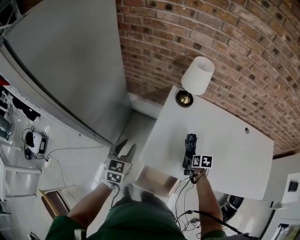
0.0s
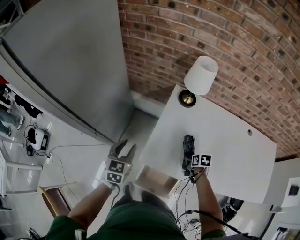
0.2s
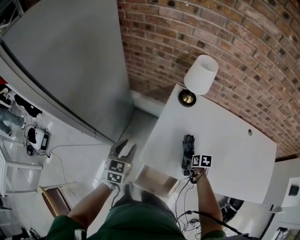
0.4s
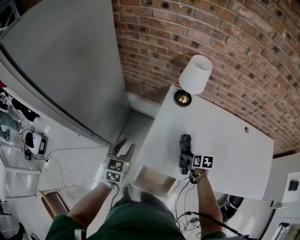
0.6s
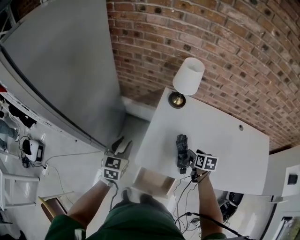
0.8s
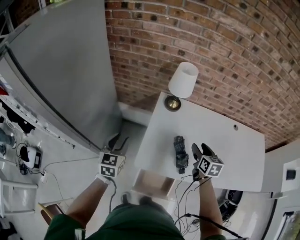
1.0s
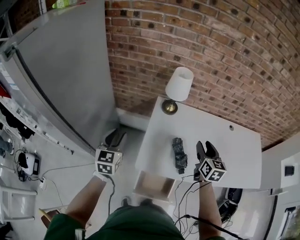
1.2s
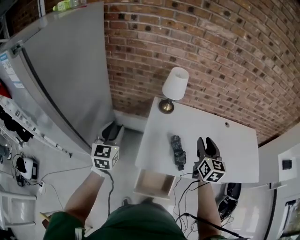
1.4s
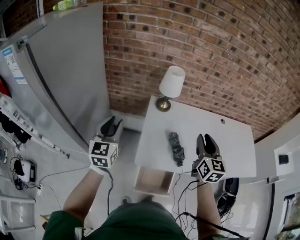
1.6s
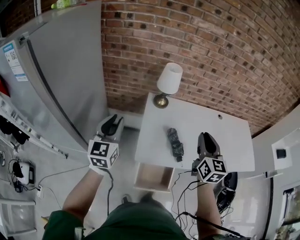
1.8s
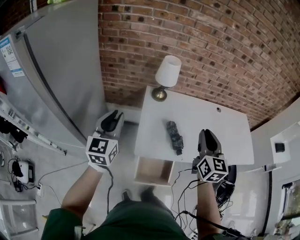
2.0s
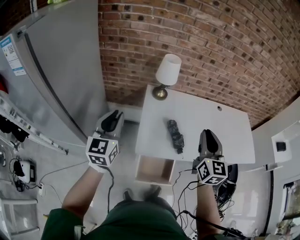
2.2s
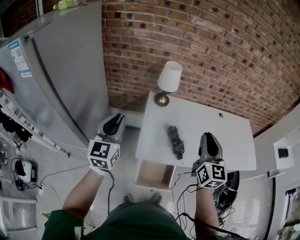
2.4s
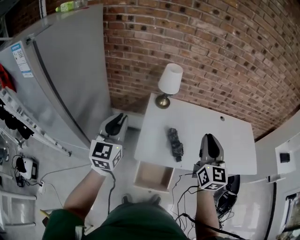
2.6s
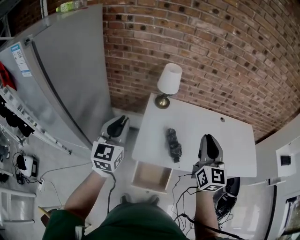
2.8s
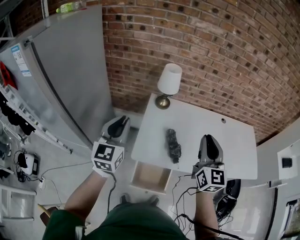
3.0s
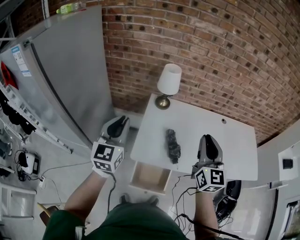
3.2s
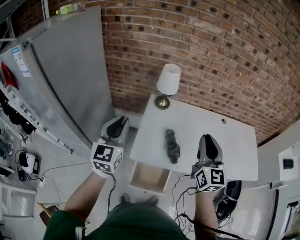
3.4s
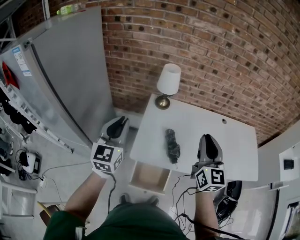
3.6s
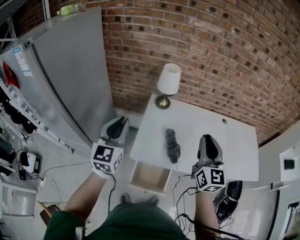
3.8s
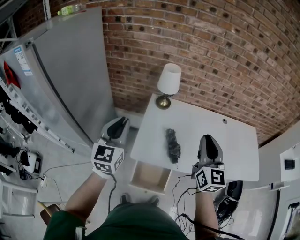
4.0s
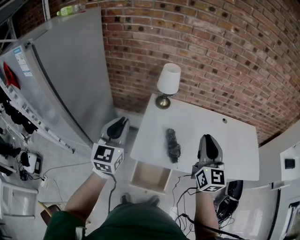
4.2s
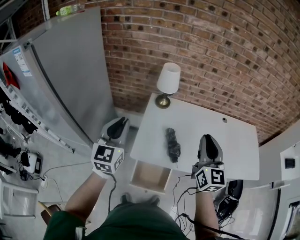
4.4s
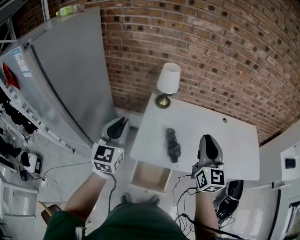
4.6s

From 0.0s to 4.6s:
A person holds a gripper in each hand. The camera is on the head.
From 0.0s to 1.6s: The right gripper heads upward, covering approximately 35 cm, and tilts its fingers approximately 50 degrees upward, while the left gripper moves upward, approximately 20 cm, and turns by some 20 degrees.
From 1.6s to 3.0s: The right gripper is displaced upward and backward by about 10 cm; the left gripper goes roughly 10 cm to the right and upward.
From 3.0s to 4.6s: The grippers stay close to where they were, moving slightly.

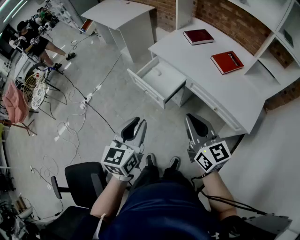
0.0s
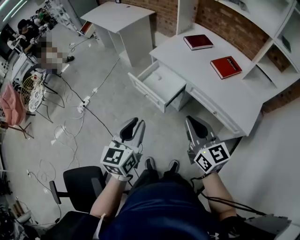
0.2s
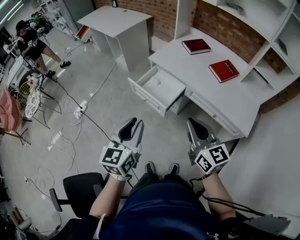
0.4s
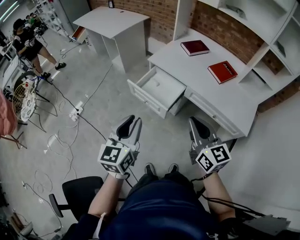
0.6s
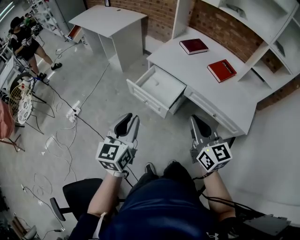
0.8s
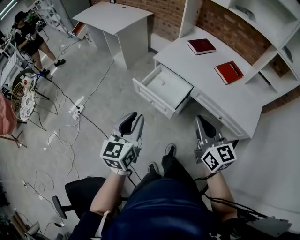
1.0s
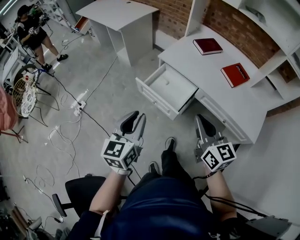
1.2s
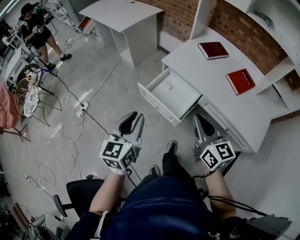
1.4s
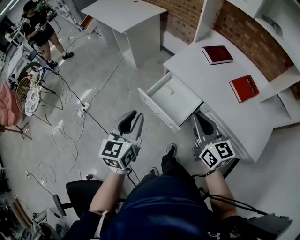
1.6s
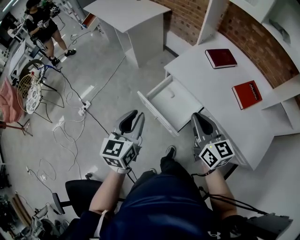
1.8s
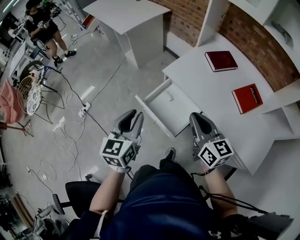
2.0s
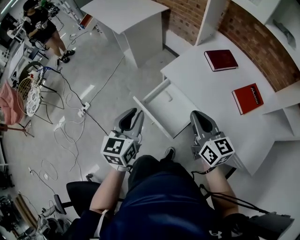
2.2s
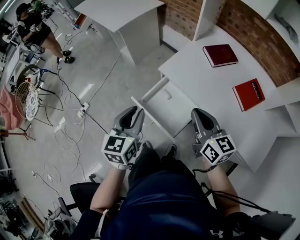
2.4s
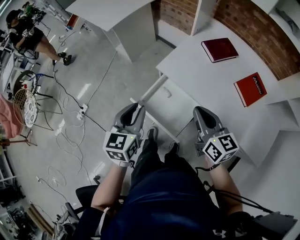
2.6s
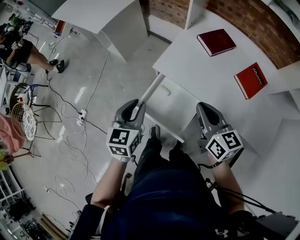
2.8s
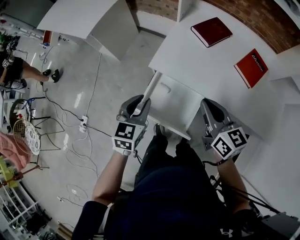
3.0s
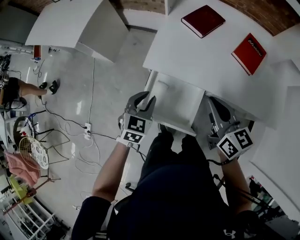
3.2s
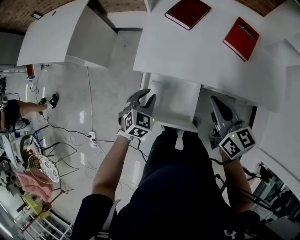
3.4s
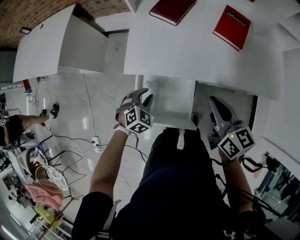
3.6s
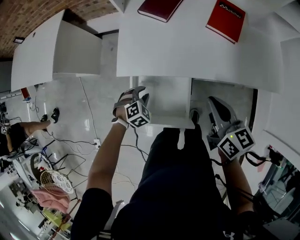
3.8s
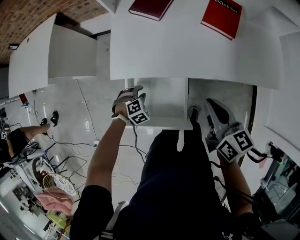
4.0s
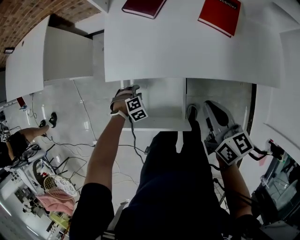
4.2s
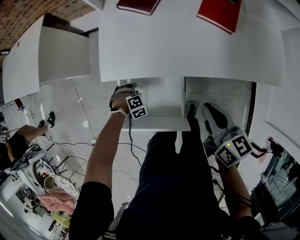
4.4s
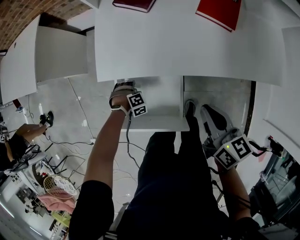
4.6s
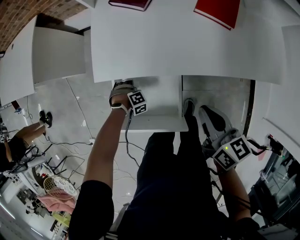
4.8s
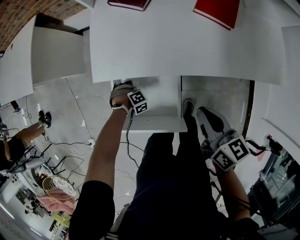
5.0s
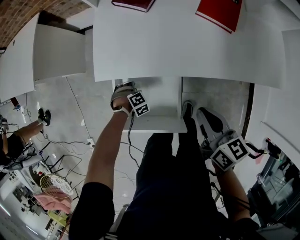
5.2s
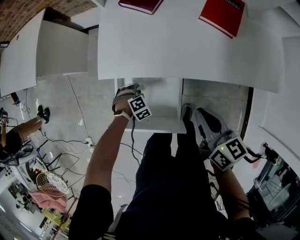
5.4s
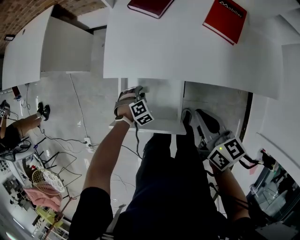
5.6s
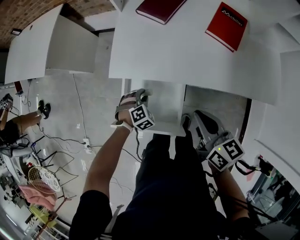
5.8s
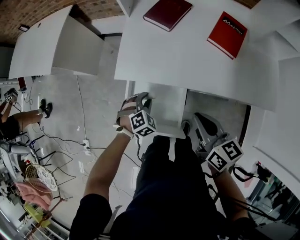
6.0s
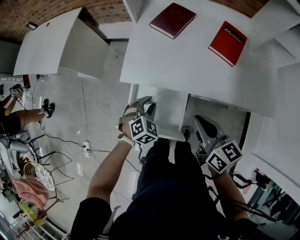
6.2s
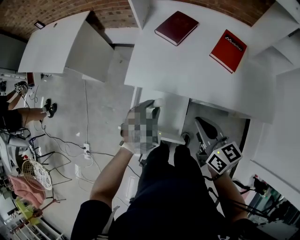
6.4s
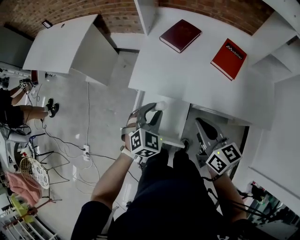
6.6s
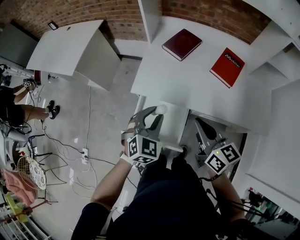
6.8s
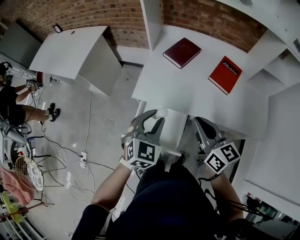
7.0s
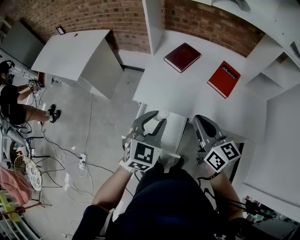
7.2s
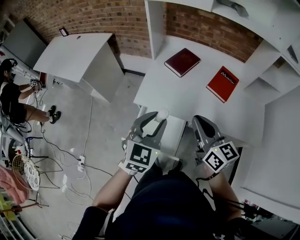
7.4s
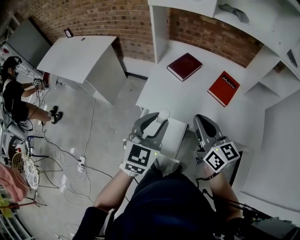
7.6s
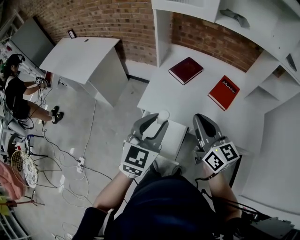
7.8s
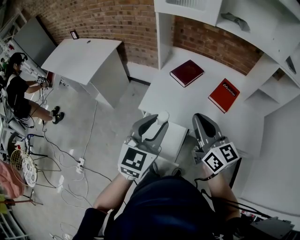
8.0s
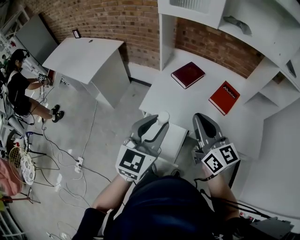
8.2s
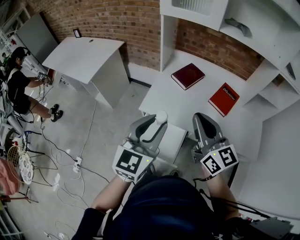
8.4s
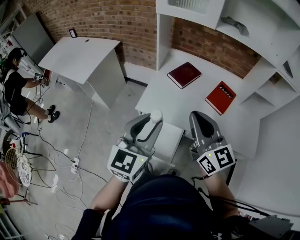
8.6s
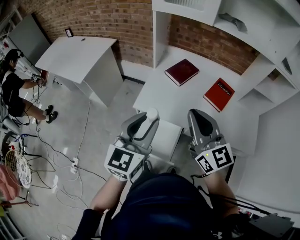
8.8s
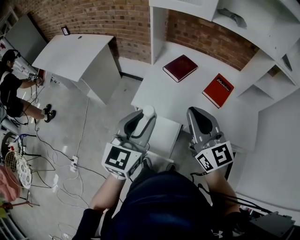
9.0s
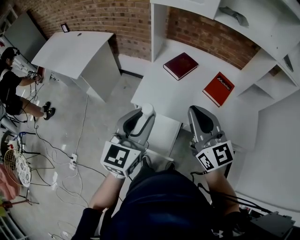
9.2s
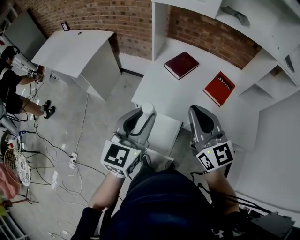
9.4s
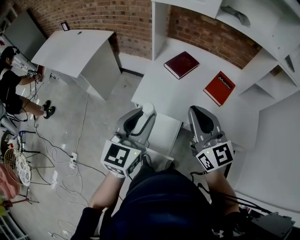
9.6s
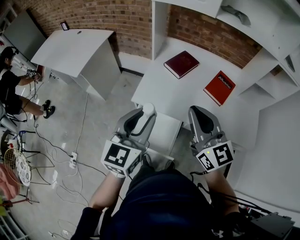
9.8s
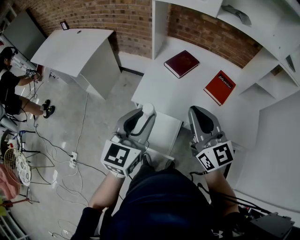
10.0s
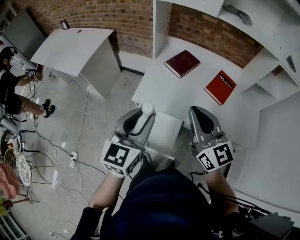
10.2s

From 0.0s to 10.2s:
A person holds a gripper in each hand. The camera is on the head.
From 0.0s to 1.4s: The grippers both shift forward and to the left by about 20 cm.
From 1.4s to 3.0s: The left gripper heads forward and downward, covering roughly 30 cm, and swivels some 30 degrees, while the right gripper shifts roughly 25 cm forward.
From 3.0s to 4.4s: The left gripper goes some 40 cm downward, and twists approximately 80 degrees clockwise, seen from behind. The right gripper ends up roughly 20 cm from where it was, and changes its angle by roughly 30 degrees.
From 4.4s to 5.8s: The left gripper moves upward, about 10 cm, and swivels about 30 degrees.
From 5.8s to 7.2s: The right gripper is displaced upward by approximately 15 cm, and rotates approximately 20 degrees. Meanwhile the left gripper moves upward, approximately 35 cm, and angles its fingers upward, by some 40 degrees.
From 7.2s to 8.8s: Both grippers move upward, roughly 10 cm. The right gripper swivels approximately 20 degrees; the left gripper changes its angle by some 20 degrees.
From 8.8s to 10.2s: The grippers move only a little.

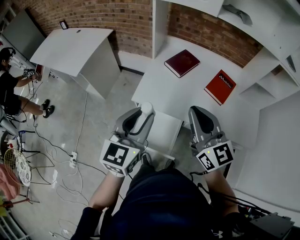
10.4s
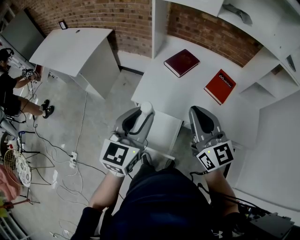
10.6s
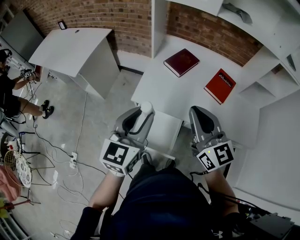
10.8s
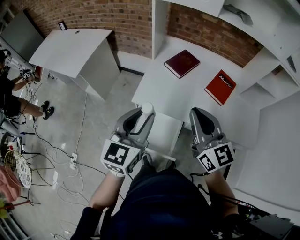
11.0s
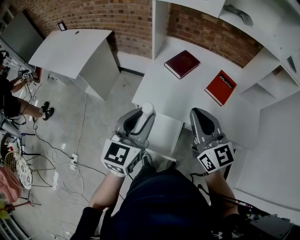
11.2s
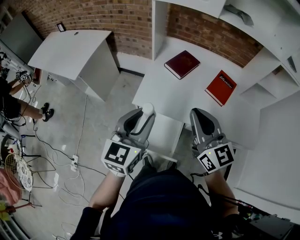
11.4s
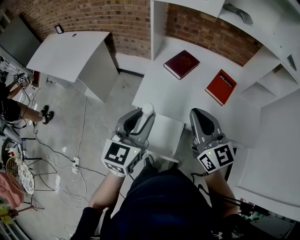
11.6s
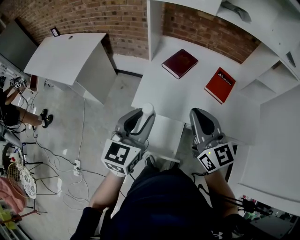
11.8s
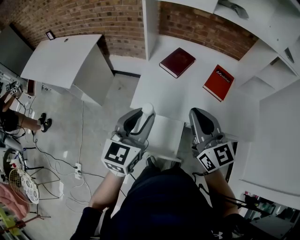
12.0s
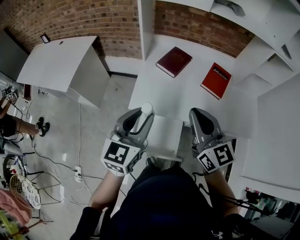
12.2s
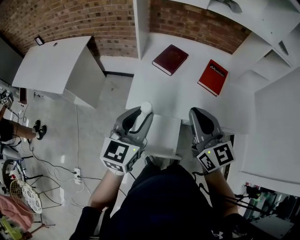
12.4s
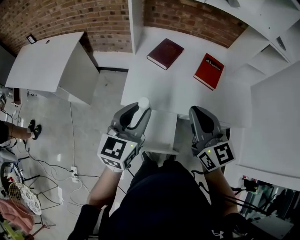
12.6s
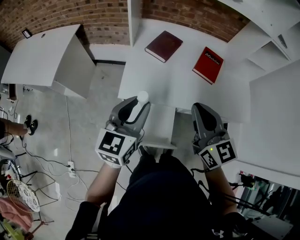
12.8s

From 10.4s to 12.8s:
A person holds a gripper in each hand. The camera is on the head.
From 10.4s to 11.6s: The grippers move only a little.
From 11.6s to 12.8s: The left gripper ends up roughly 5 cm from where it was.

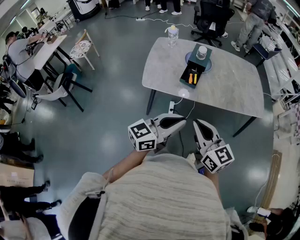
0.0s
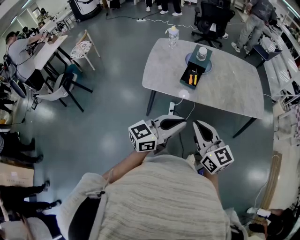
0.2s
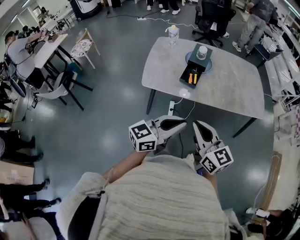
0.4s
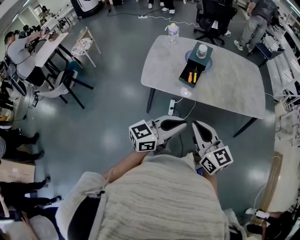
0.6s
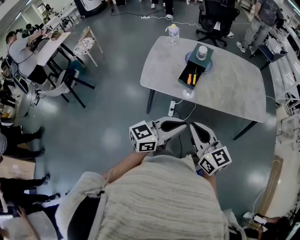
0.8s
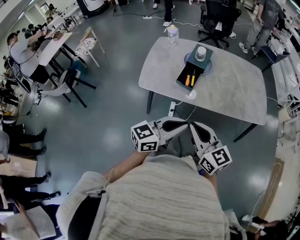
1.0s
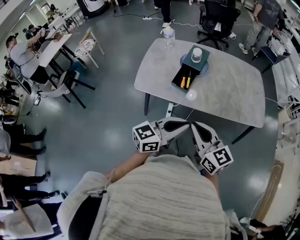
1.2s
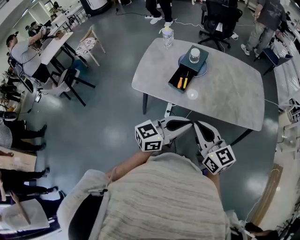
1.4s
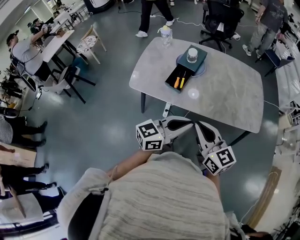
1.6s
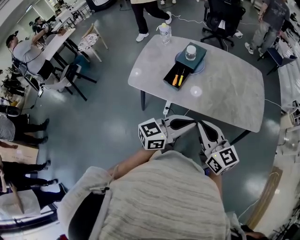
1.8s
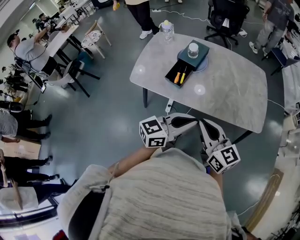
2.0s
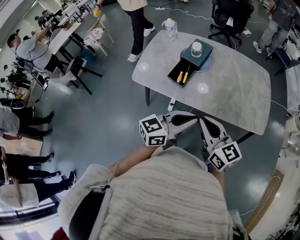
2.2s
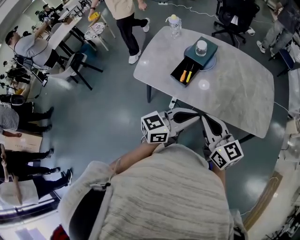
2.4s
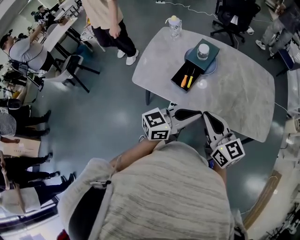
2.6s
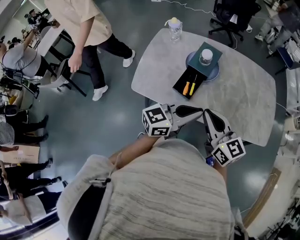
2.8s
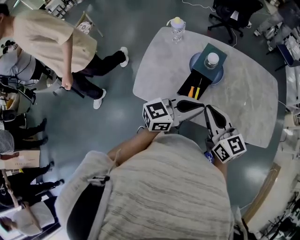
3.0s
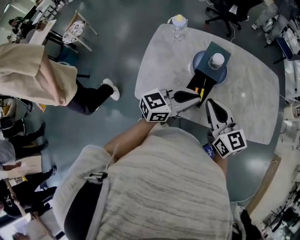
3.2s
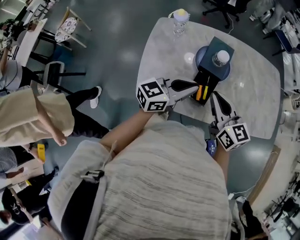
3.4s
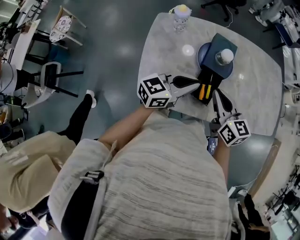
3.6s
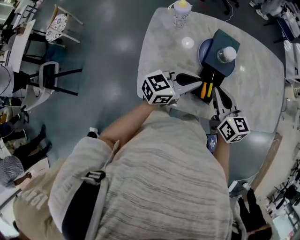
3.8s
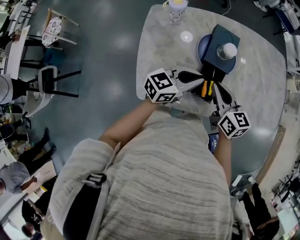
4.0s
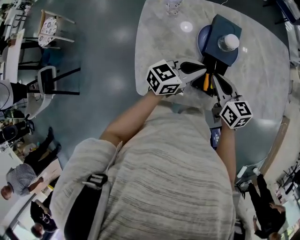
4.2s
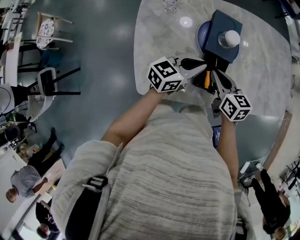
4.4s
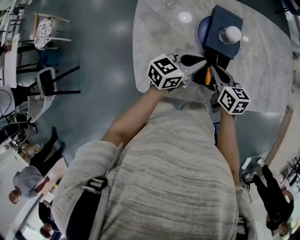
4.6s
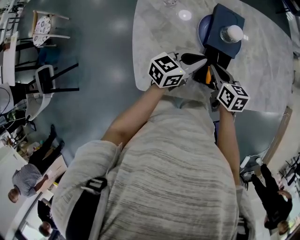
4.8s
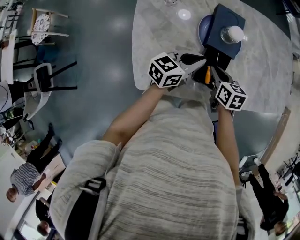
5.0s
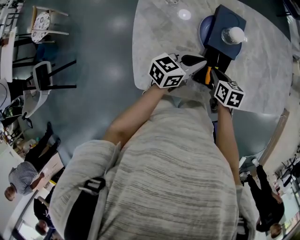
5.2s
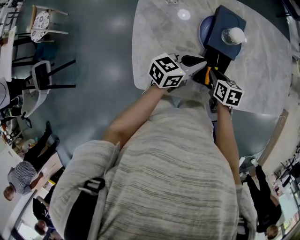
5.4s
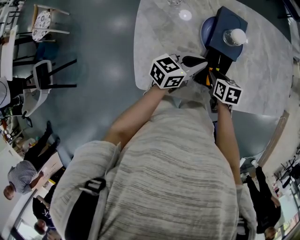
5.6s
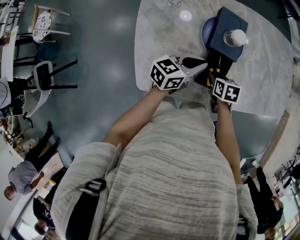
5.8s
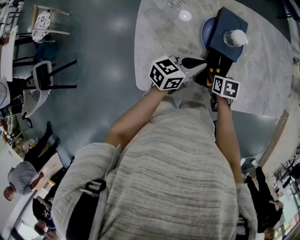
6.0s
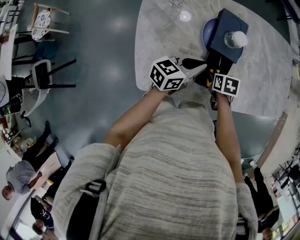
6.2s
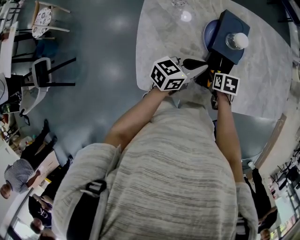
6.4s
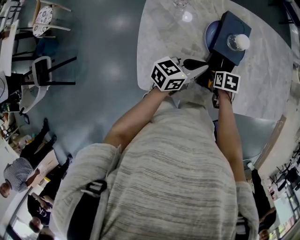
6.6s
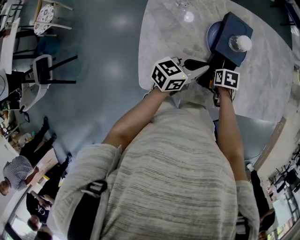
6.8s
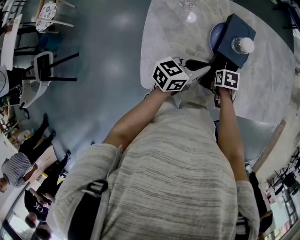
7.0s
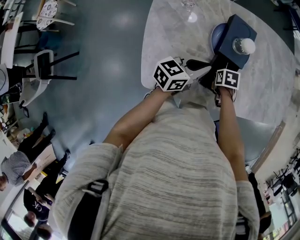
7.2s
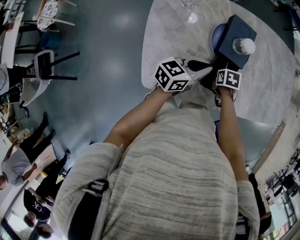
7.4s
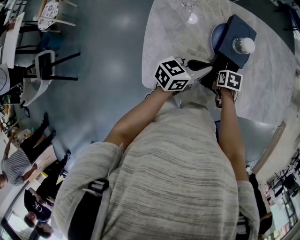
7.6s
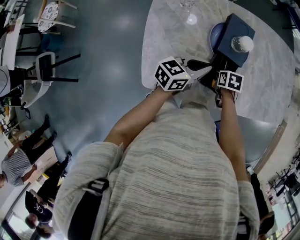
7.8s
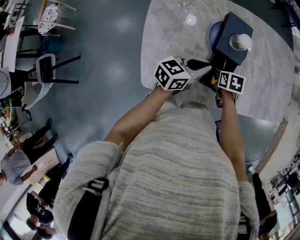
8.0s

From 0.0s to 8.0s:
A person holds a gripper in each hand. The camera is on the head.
From 0.0s to 1.6s: The two grippers go some 20 cm to the right and forward.
From 1.6s to 3.2s: Both grippers move forward and to the left, approximately 30 cm.
From 3.2s to 4.8s: The right gripper moves downward and forward, approximately 25 cm, and rotates approximately 40 degrees. The left gripper is displaced downward, forward and to the left by roughly 20 cm.
From 4.8s to 6.4s: The right gripper travels downward by roughly 10 cm, tips its fingers downward by about 30 degrees, and opens.
From 6.4s to 8.0s: There are only small adjustments of the grippers.
